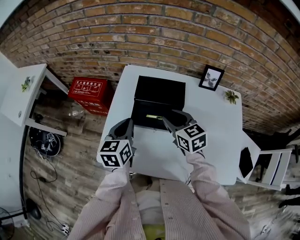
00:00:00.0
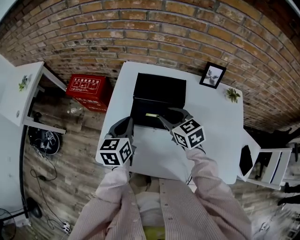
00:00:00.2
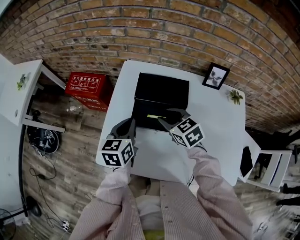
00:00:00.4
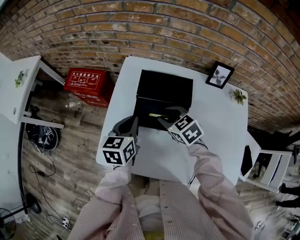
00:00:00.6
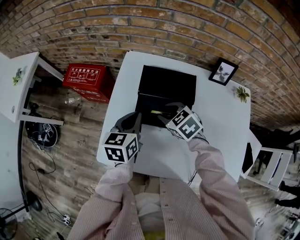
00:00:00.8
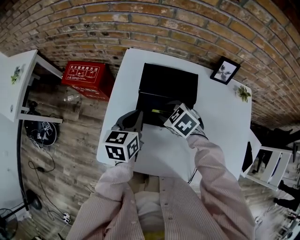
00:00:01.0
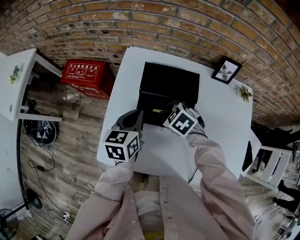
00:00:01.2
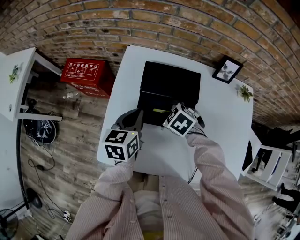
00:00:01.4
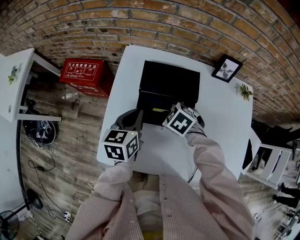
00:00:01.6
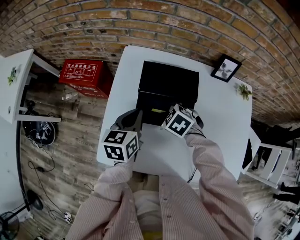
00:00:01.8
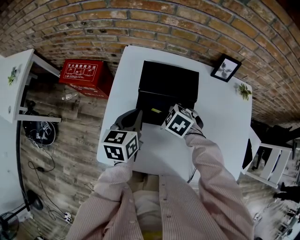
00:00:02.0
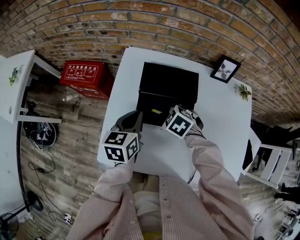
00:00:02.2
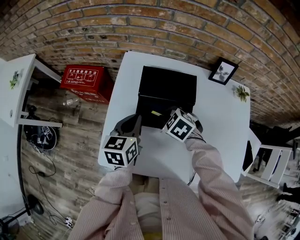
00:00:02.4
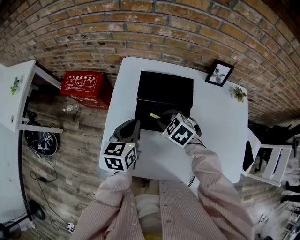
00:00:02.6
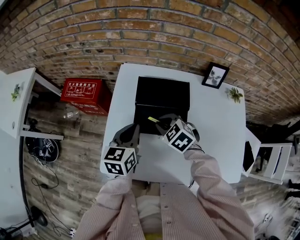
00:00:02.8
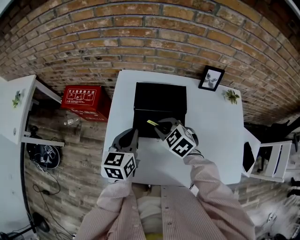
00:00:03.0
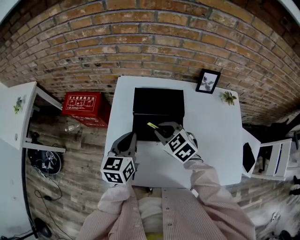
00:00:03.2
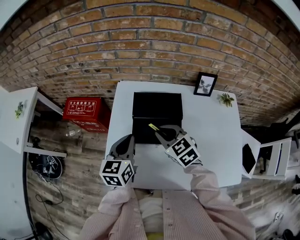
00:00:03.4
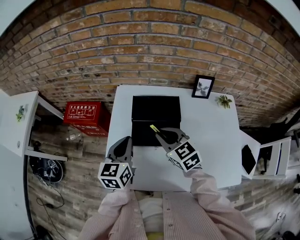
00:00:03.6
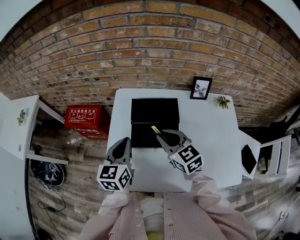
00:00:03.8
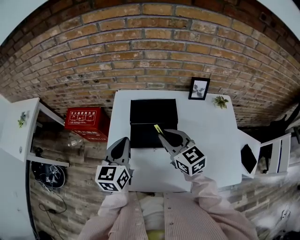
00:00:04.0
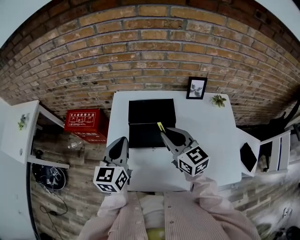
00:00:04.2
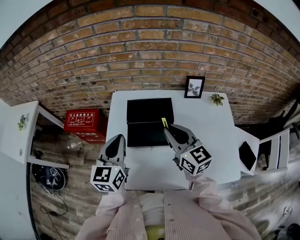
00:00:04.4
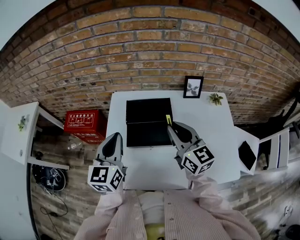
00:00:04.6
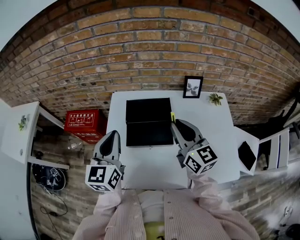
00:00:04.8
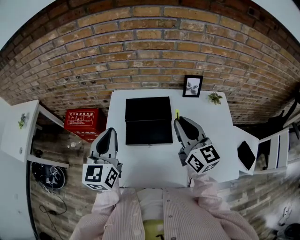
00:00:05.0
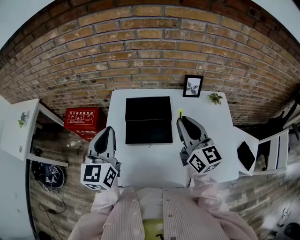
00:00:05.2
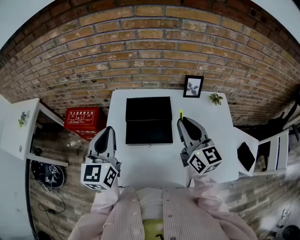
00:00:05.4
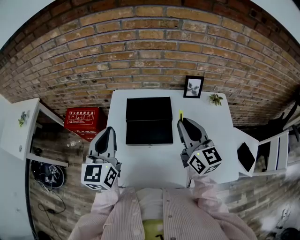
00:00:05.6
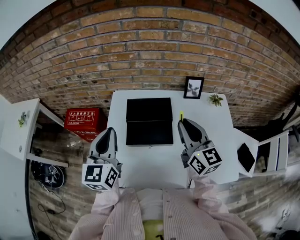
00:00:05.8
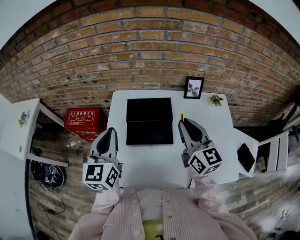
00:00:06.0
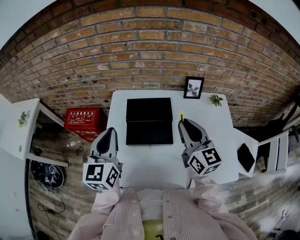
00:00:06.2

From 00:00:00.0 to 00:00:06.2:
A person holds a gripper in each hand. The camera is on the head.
From 00:00:00.0 to 00:00:01.6: The left gripper goes roughly 5 cm downward; the right gripper goes some 15 cm downward, and angles its fingers downward, by approximately 40 degrees.
From 00:00:01.6 to 00:00:03.2: The right gripper heads upward, covering some 10 cm, turns by approximately 30 degrees, and closes up; the left gripper ends up some 5 cm from where it was.
From 00:00:03.2 to 00:00:04.6: The left gripper shifts roughly 10 cm upward. Meanwhile the right gripper travels upward and to the right by approximately 15 cm, and points its fingers some 40 degrees further upward.
From 00:00:04.6 to 00:00:06.2: The grippers stay close to where they were, moving slightly.

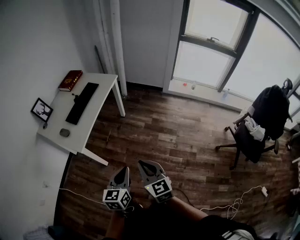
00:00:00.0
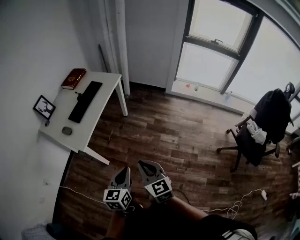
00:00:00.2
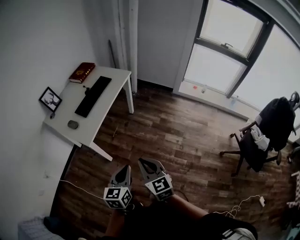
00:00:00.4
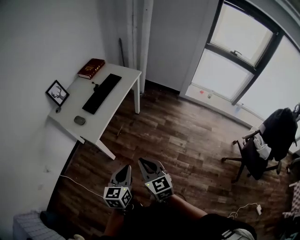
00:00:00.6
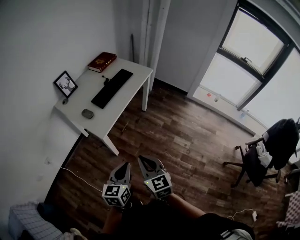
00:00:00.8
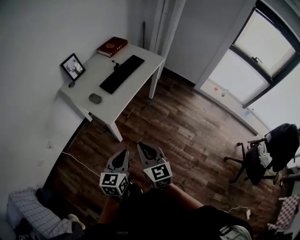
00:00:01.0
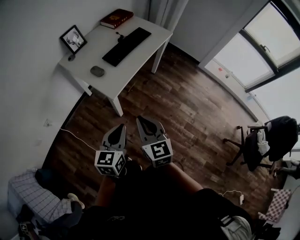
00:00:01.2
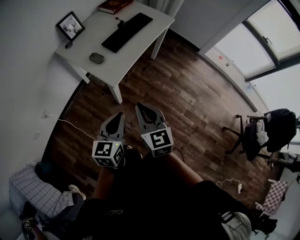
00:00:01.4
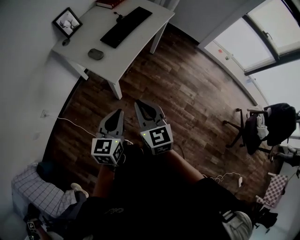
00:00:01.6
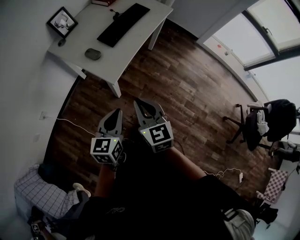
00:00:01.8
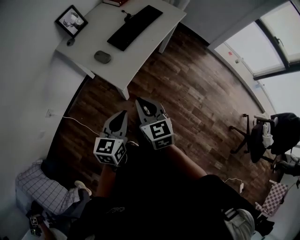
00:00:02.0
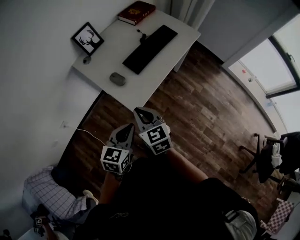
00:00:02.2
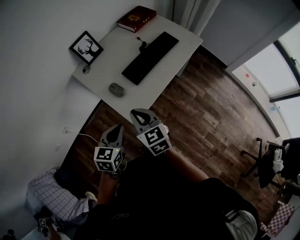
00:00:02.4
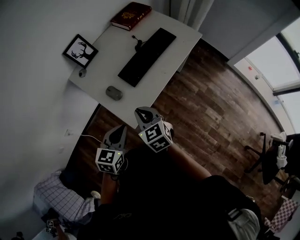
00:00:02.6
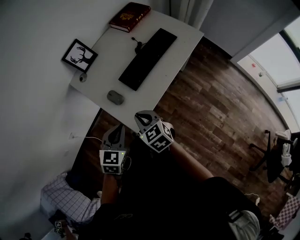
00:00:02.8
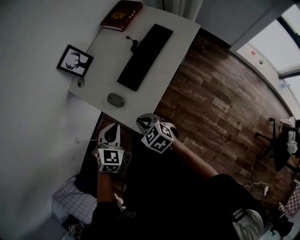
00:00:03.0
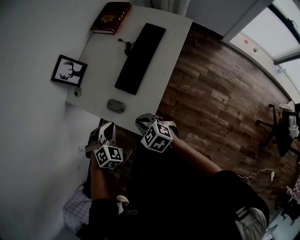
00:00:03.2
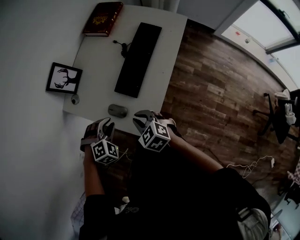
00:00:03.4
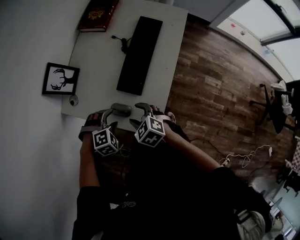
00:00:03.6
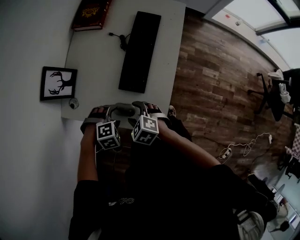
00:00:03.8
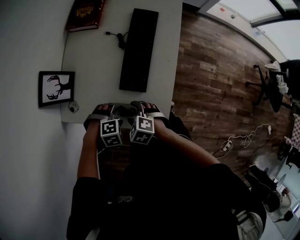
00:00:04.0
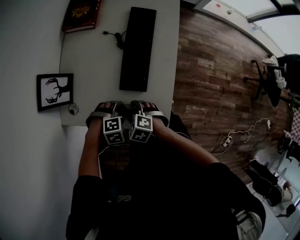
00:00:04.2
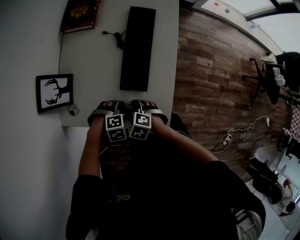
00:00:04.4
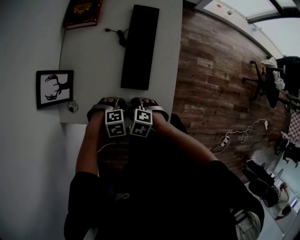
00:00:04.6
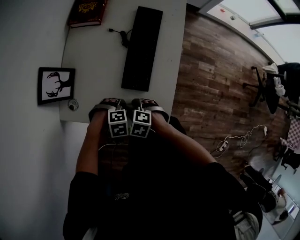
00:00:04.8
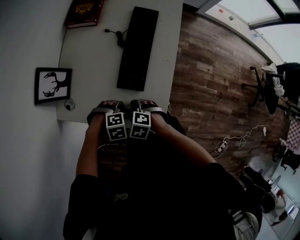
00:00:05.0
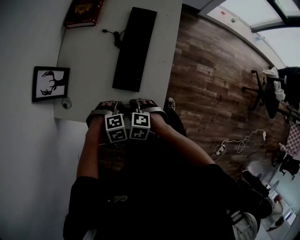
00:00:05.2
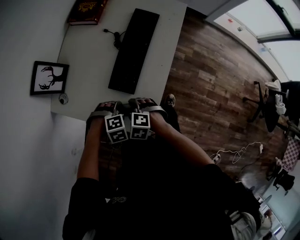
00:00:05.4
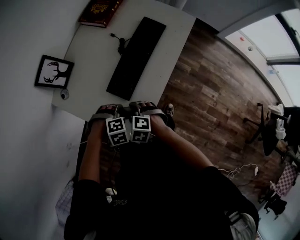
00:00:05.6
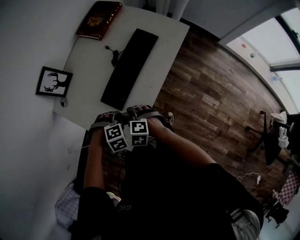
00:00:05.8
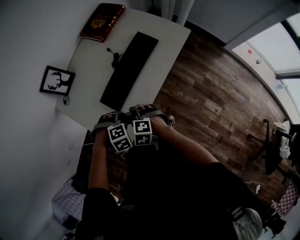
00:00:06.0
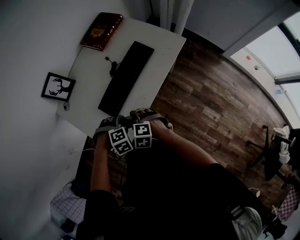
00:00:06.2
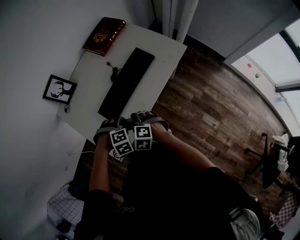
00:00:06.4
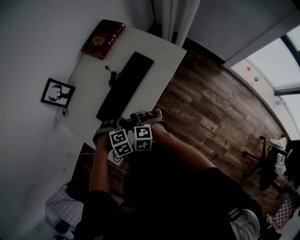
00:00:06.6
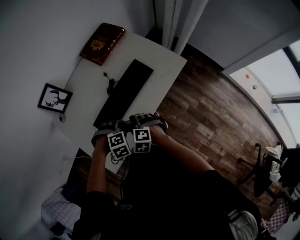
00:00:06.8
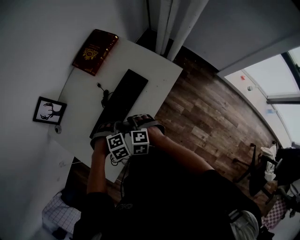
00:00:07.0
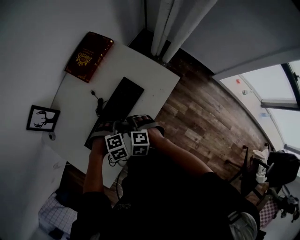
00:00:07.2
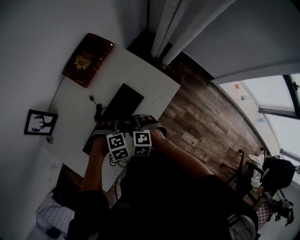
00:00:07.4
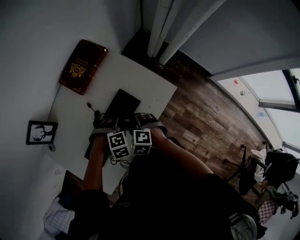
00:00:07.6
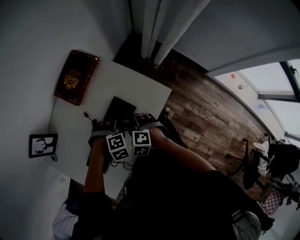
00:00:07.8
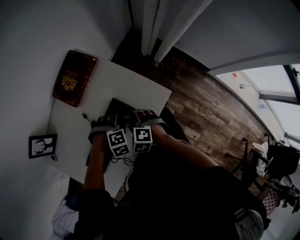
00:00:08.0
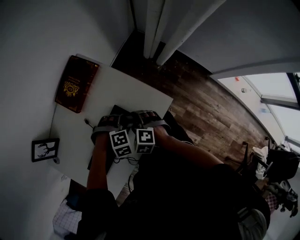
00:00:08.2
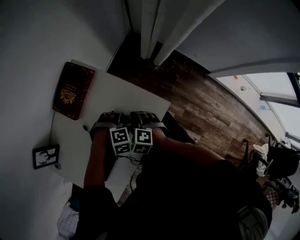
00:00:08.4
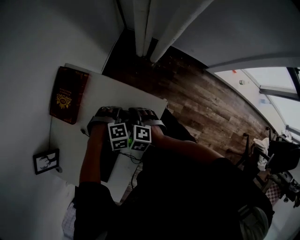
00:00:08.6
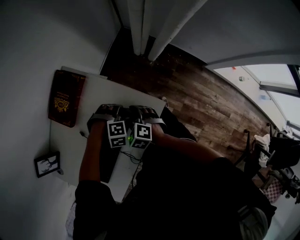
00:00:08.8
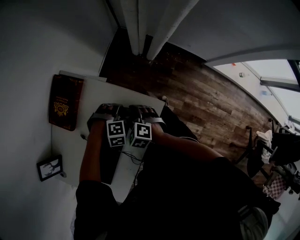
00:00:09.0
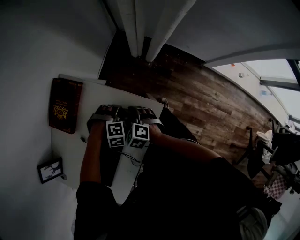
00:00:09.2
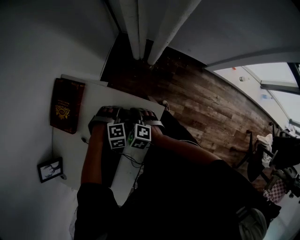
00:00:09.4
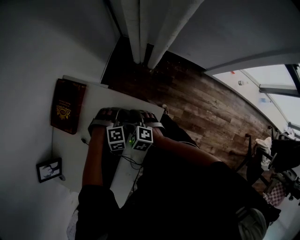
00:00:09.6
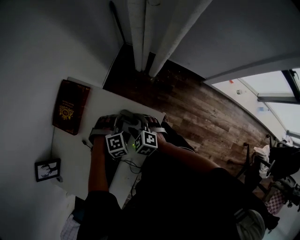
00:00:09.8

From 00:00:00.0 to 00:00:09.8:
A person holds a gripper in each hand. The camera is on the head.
From 00:00:00.0 to 00:00:01.4: The two grippers go roughly 25 cm to the left.
From 00:00:01.4 to 00:00:02.8: The grippers both shift forward by roughly 25 cm. The right gripper rotates about 30 degrees. The left gripper turns by approximately 30 degrees.
From 00:00:02.8 to 00:00:04.2: The left gripper shifts by some 25 cm, angles its fingers downward, by some 40 degrees, and opens its fingers; the right gripper shifts by some 25 cm, tips its fingers downward by about 30 degrees, and opens its fingers.
From 00:00:04.2 to 00:00:05.6: The right gripper moves roughly 10 cm, and changes its angle by some 30 degrees. Meanwhile the left gripper ends up roughly 10 cm from where it was, and rotates approximately 20 degrees.
From 00:00:05.6 to 00:00:07.0: The left gripper changes place by roughly 25 cm. The right gripper ends up roughly 25 cm from where it was.
From 00:00:07.0 to 00:00:08.4: The right gripper shifts by some 25 cm. Meanwhile the left gripper moves some 25 cm.
From 00:00:08.4 to 00:00:09.8: The right gripper moves about 5 cm. The left gripper shifts by some 10 cm, and closes.

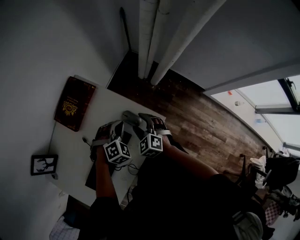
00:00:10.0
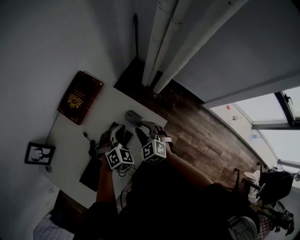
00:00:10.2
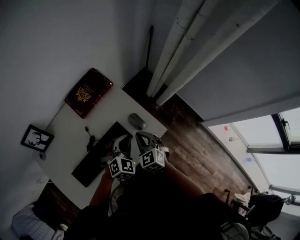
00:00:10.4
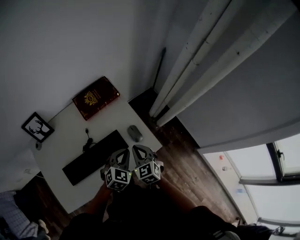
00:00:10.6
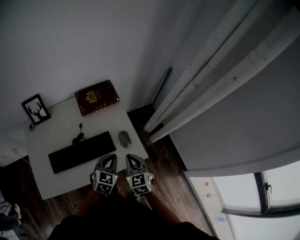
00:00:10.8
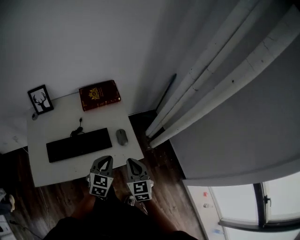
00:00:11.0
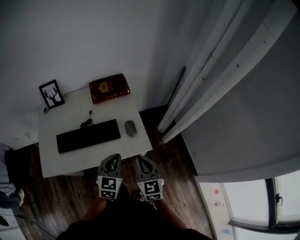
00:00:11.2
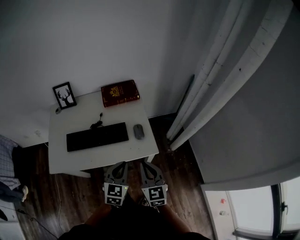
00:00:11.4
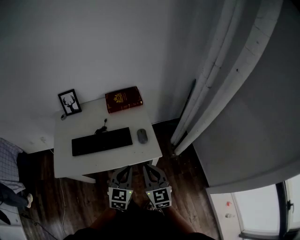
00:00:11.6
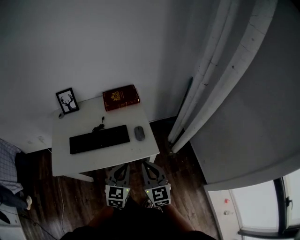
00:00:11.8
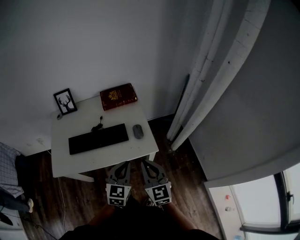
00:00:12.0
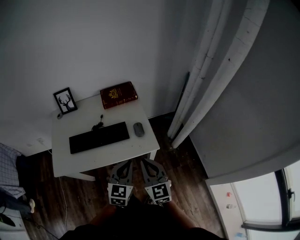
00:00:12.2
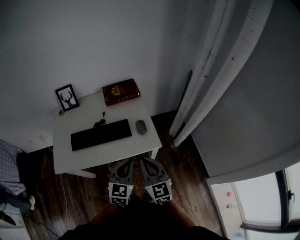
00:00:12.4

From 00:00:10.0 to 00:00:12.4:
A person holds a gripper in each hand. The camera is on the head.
From 00:00:10.0 to 00:00:11.2: The left gripper ends up about 20 cm from where it was, and twists approximately 70 degrees counterclockwise, seen from behind, while the right gripper moves some 20 cm, tilts its fingers about 30 degrees upward, and closes its fingers.
From 00:00:11.2 to 00:00:12.4: Both grippers move backward, roughly 5 cm.

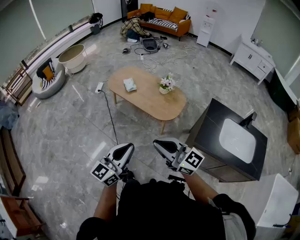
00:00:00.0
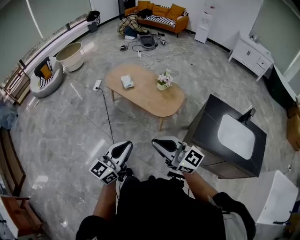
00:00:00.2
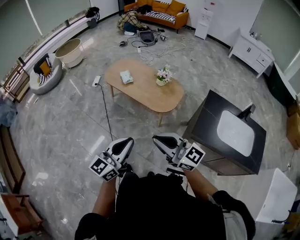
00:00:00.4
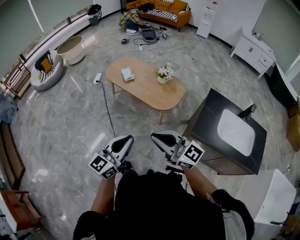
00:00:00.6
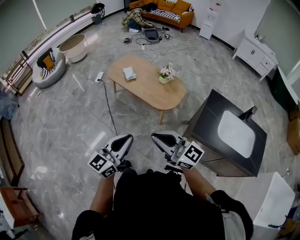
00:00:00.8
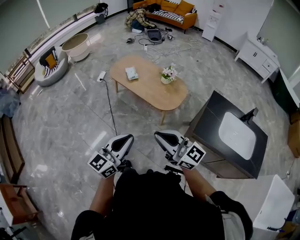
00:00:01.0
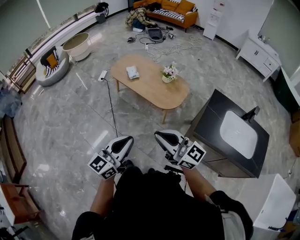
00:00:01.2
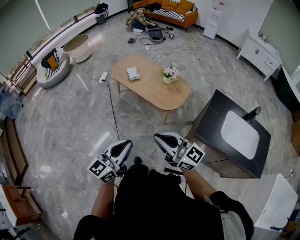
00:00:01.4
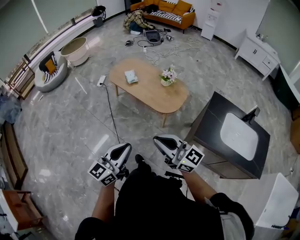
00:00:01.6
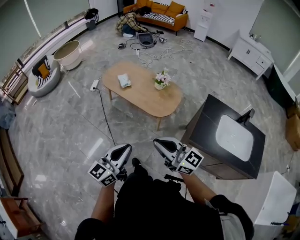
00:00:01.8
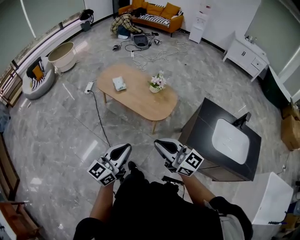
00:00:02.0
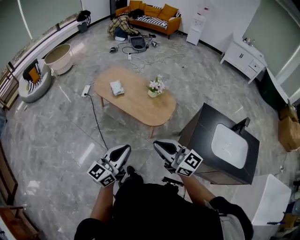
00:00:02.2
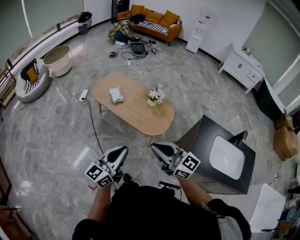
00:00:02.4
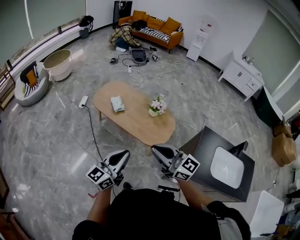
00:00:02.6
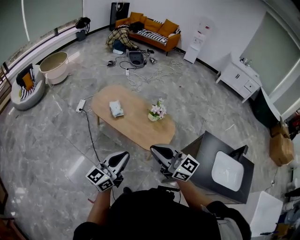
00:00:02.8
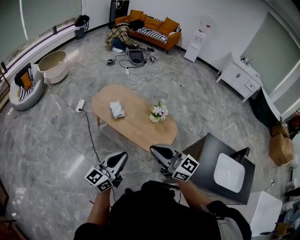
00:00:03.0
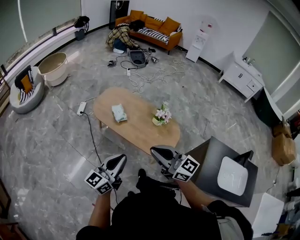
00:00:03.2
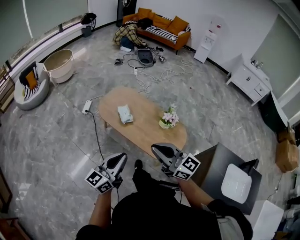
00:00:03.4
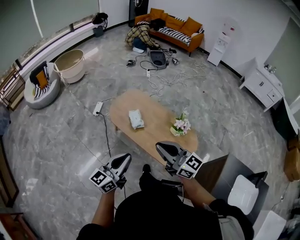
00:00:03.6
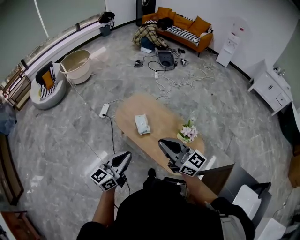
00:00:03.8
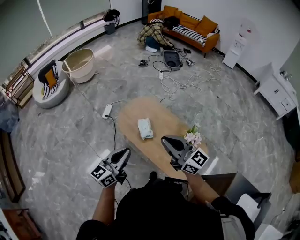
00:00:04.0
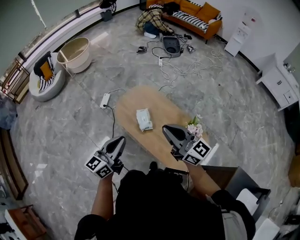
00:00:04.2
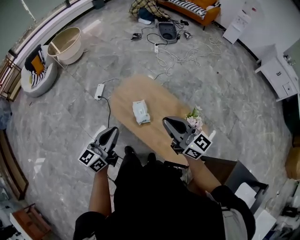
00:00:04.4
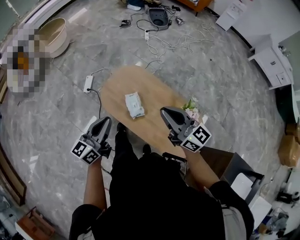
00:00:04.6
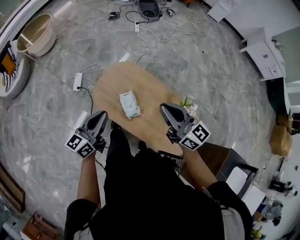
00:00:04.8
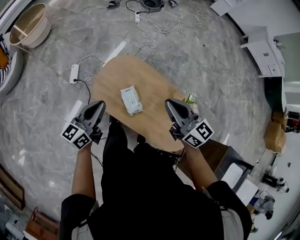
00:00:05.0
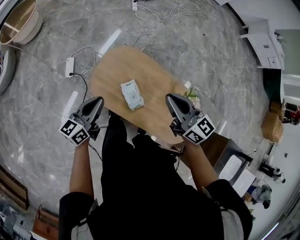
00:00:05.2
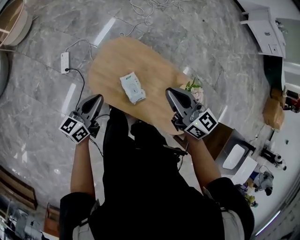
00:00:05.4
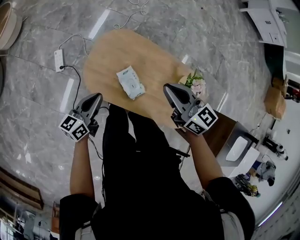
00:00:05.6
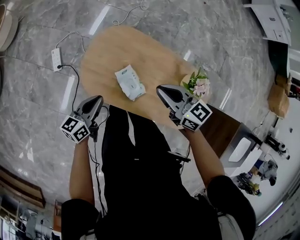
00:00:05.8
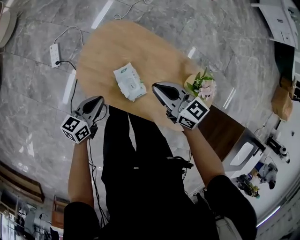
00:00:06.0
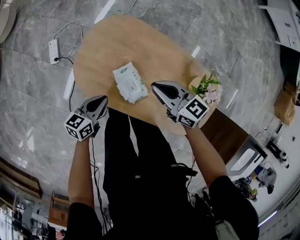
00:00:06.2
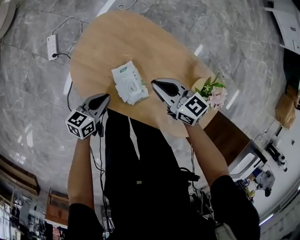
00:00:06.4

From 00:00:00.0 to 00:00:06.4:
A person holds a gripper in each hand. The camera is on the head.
From 00:00:00.0 to 00:00:01.6: The grippers move only a little.
From 00:00:01.6 to 00:00:03.2: The two grippers go some 35 cm forward.
From 00:00:03.2 to 00:00:04.8: Both grippers are carried forward, approximately 50 cm.
From 00:00:04.8 to 00:00:06.4: Both grippers travel together downward, roughly 40 cm. The left gripper rotates some 40 degrees. Meanwhile the right gripper turns by some 30 degrees.
